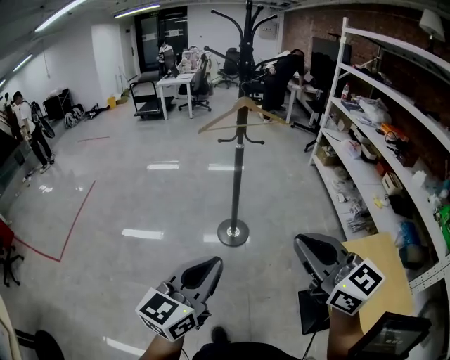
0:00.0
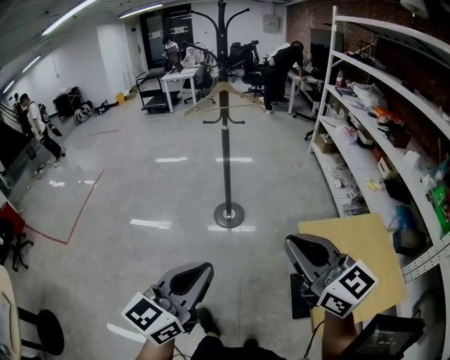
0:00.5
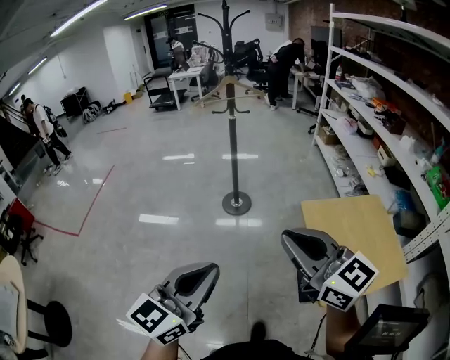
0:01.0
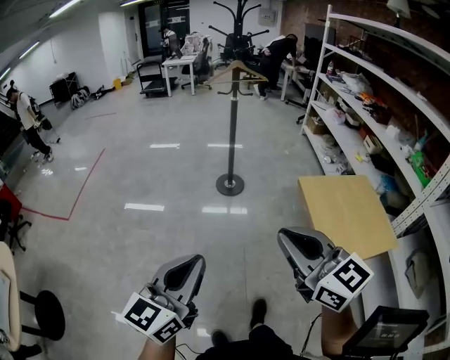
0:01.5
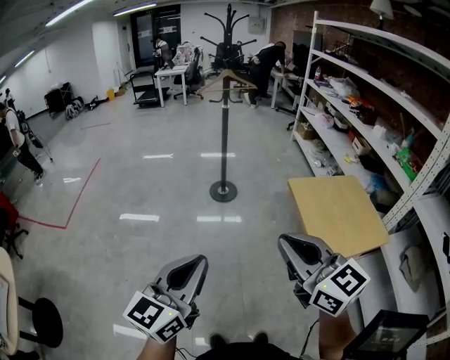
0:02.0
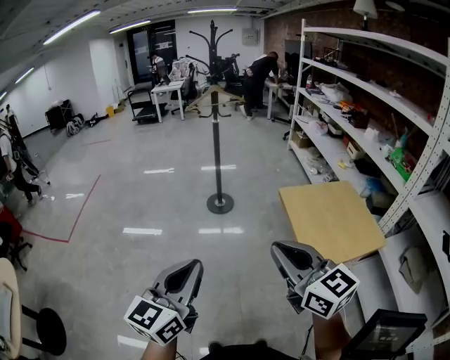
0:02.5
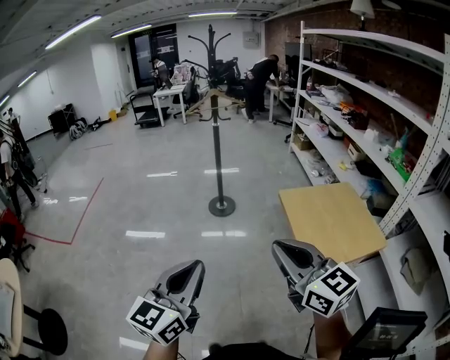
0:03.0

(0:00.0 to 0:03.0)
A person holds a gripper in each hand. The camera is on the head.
0:00.0 - 0:01.5: The two grippers go about 35 cm backward.
0:01.5 - 0:03.0: The left gripper heads to the right, covering roughly 10 cm; the right gripper is displaced to the right and backward by roughly 10 cm.

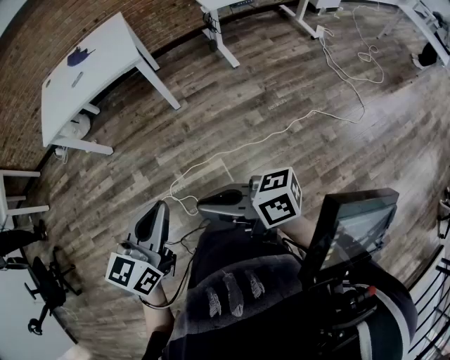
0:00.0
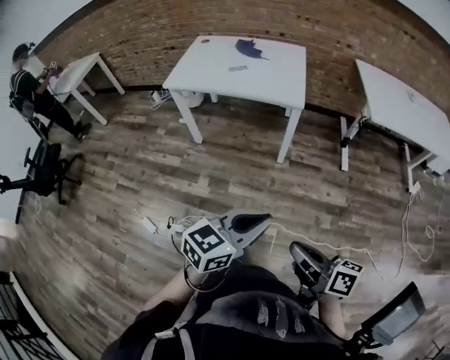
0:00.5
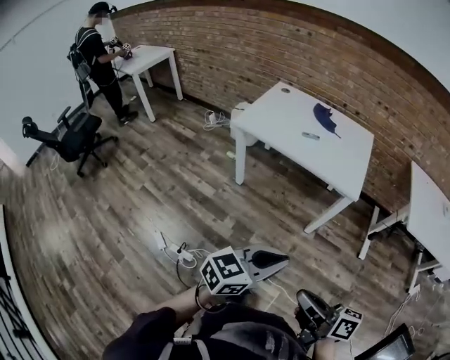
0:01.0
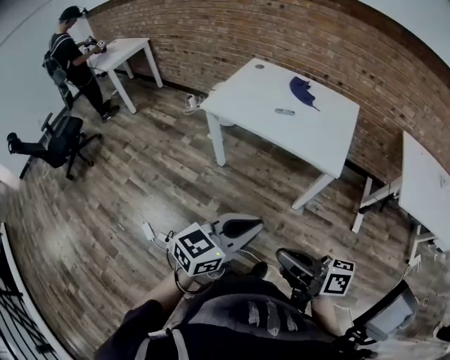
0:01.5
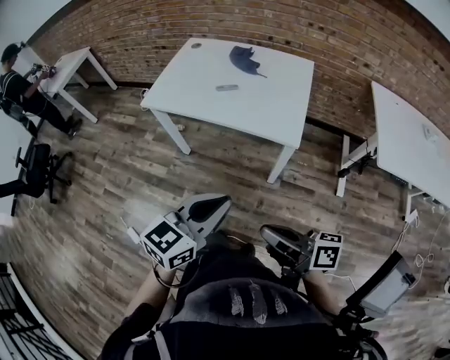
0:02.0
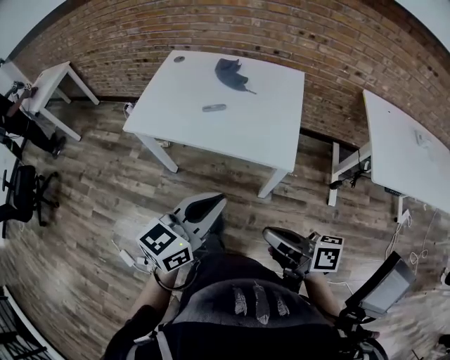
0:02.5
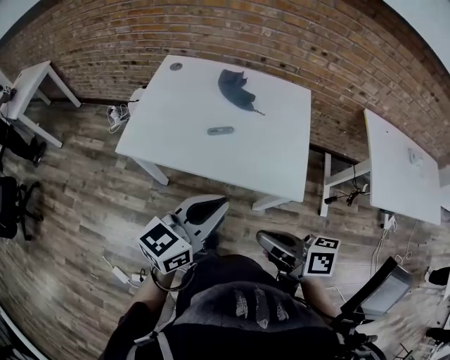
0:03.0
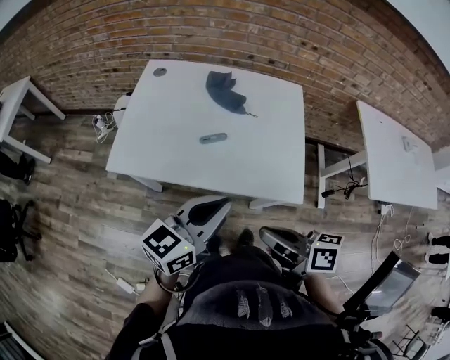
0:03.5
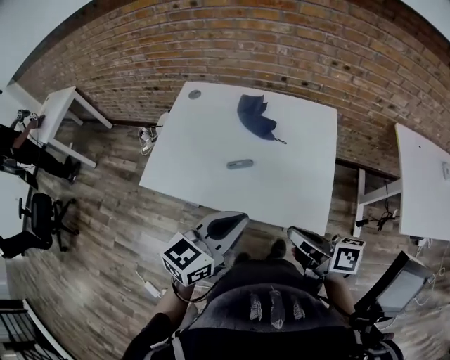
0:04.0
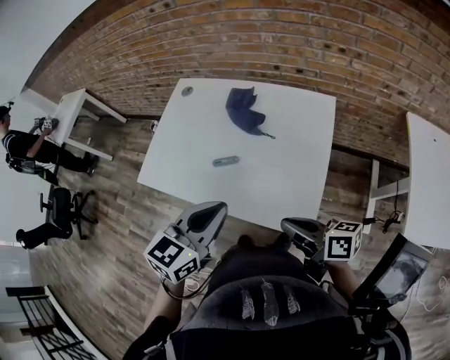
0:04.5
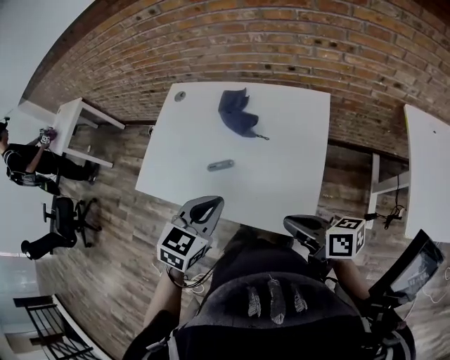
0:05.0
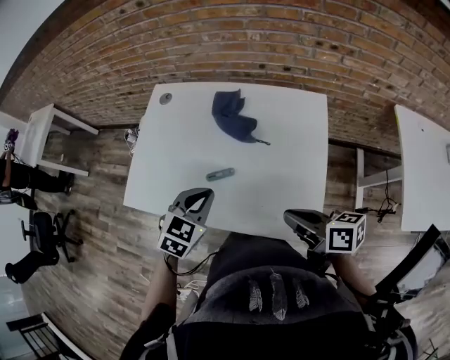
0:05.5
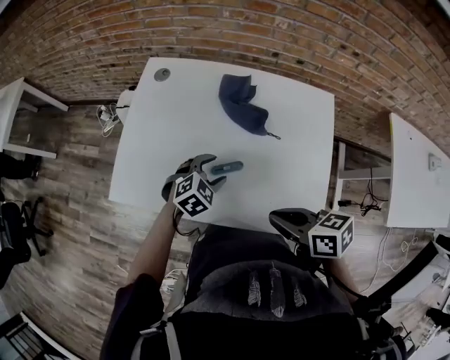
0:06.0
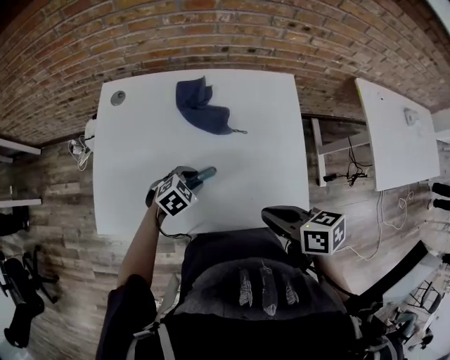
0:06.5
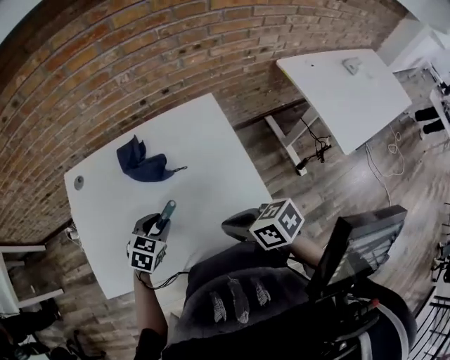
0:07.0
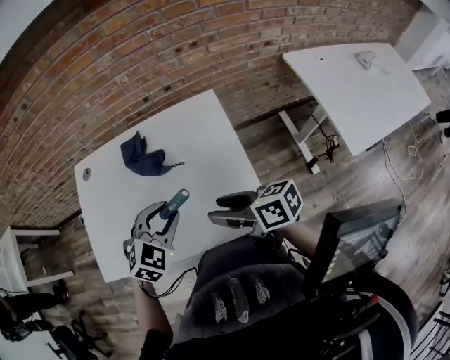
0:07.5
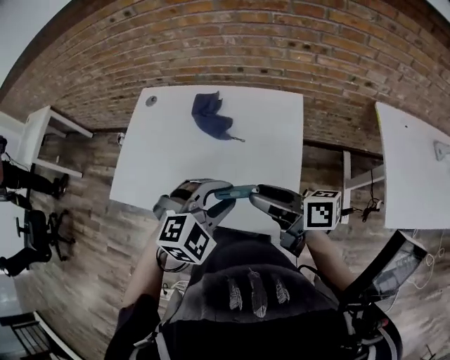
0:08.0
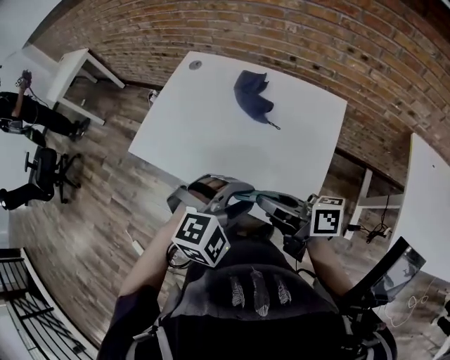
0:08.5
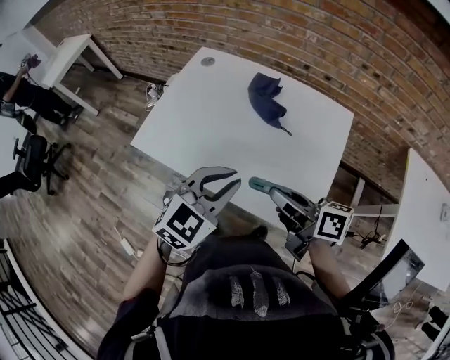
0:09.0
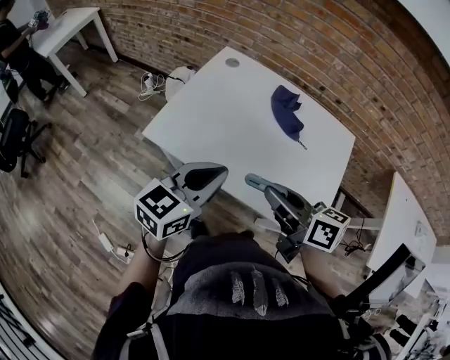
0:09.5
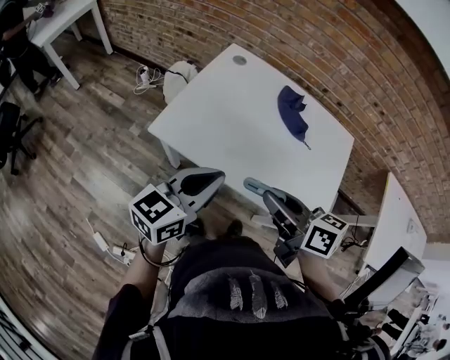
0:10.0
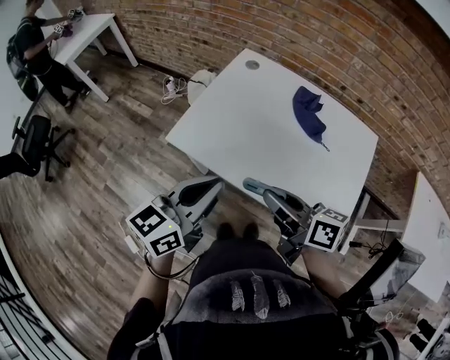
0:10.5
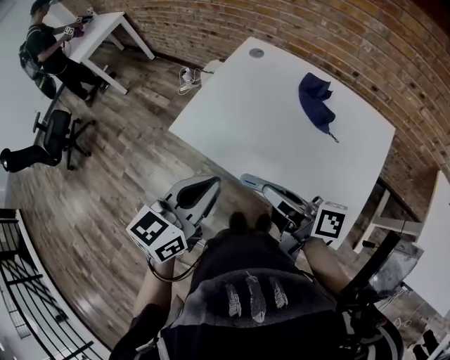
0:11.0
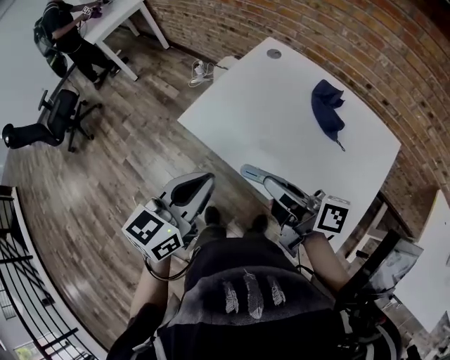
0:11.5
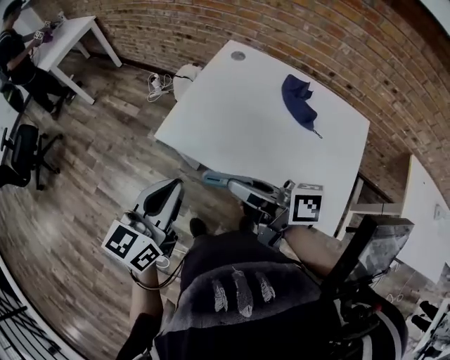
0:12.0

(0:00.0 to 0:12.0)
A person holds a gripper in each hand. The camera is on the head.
0:00.0 - 0:02.0: The two grippers go about 35 cm forward.
0:02.0 - 0:04.0: Both grippers move forward, approximately 30 cm.
0:04.0 - 0:06.0: The right gripper goes approximately 15 cm forward and downward, travels to the right and back again, roughly 10 cm each way, and rotates some 30 degrees; the left gripper heads downward and forward, covering roughly 30 cm, tilts its fingers some 40 degrees downward, and opens its fingers.
0:06.0 - 0:08.0: The left gripper shifts roughly 30 cm to the right, upward and backward, swivels about 30 degrees, and closes; the right gripper is displaced to the right and upward by approximately 15 cm, rotates some 30 degrees, and opens.
0:08.0 - 0:10.0: Both grippers move to the left, some 30 cm. The left gripper rotates around the line of its fingers by approximately 70 degrees, counterclockwise from behind, and closes its fingers, while the right gripper rotates about 20 degrees, and closes up.
0:10.0 - 0:12.0: Both grippers move to the left, some 10 cm. The right gripper rotates some 30 degrees.

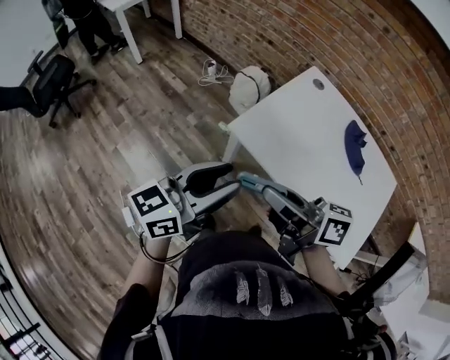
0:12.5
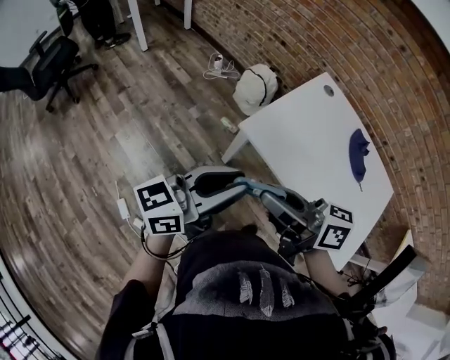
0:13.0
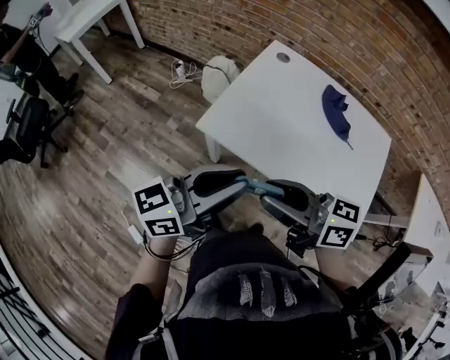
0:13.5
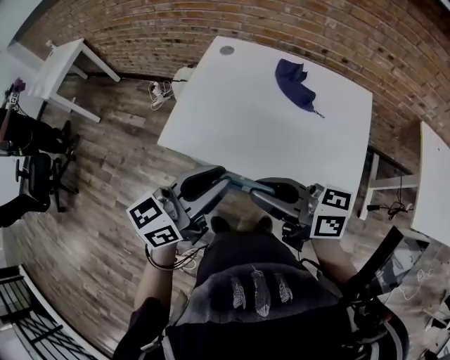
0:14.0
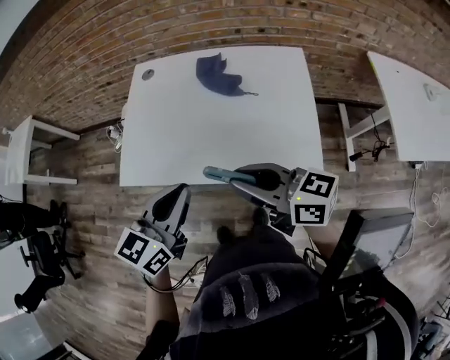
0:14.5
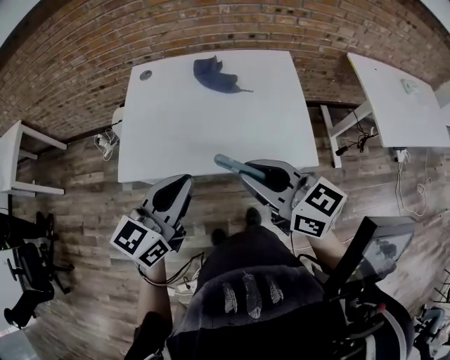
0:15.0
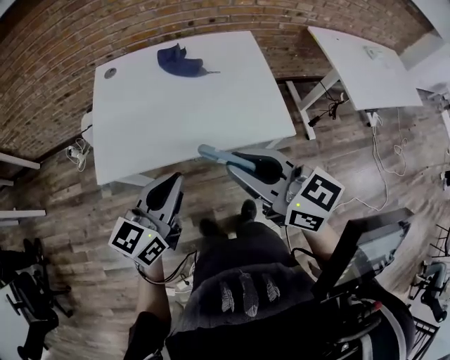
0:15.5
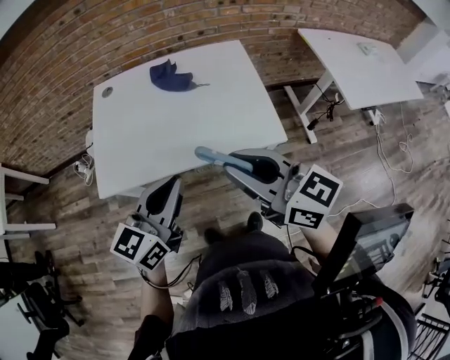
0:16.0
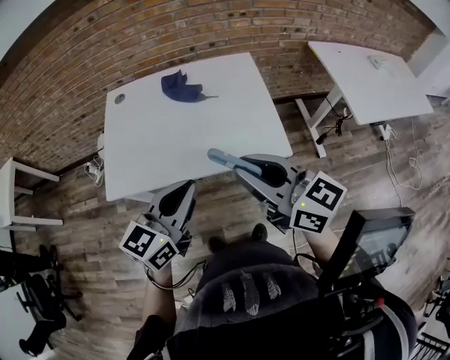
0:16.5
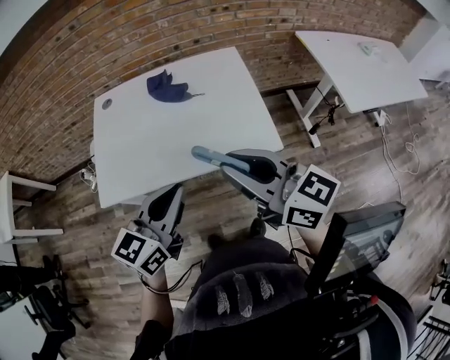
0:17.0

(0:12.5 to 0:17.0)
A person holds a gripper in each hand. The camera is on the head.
0:12.5 - 0:14.5: The two grippers go approximately 25 cm to the right. The right gripper turns by about 40 degrees, while the left gripper swivels roughly 30 degrees, and closes.
0:14.5 - 0:17.0: The left gripper heads backward and to the right, covering approximately 10 cm; the right gripper heads upward, backward and to the right, covering roughly 15 cm, and rotates roughly 30 degrees.

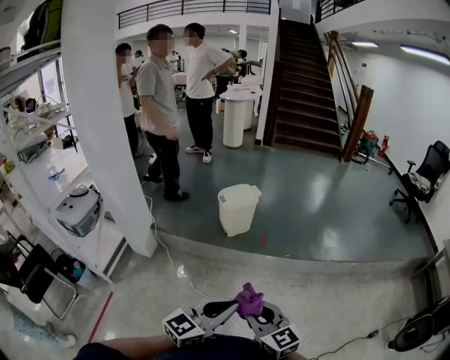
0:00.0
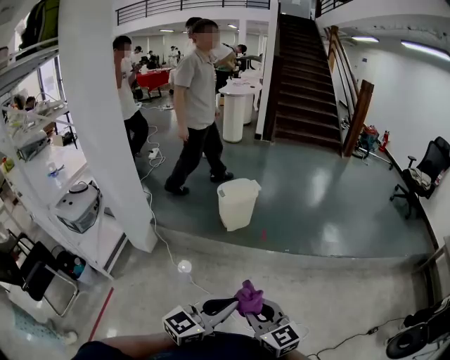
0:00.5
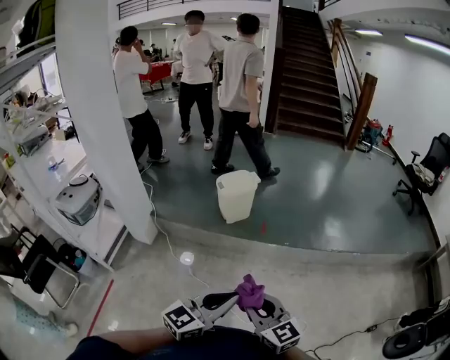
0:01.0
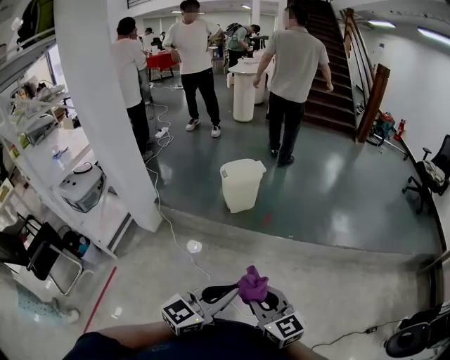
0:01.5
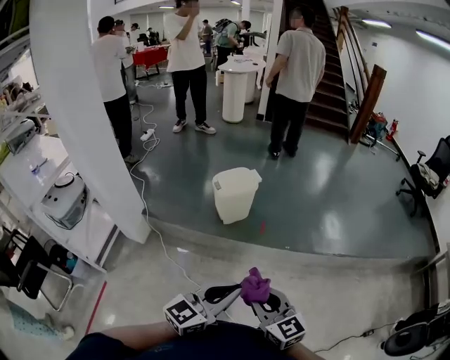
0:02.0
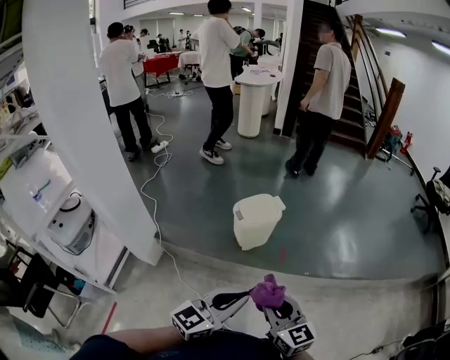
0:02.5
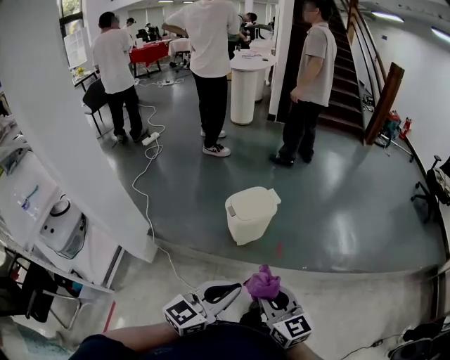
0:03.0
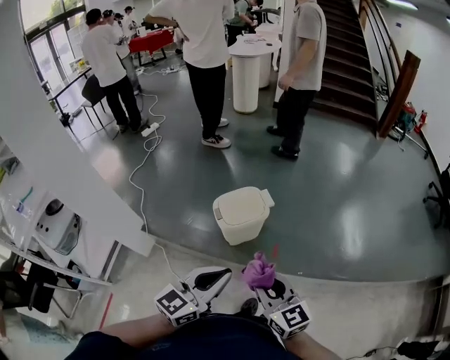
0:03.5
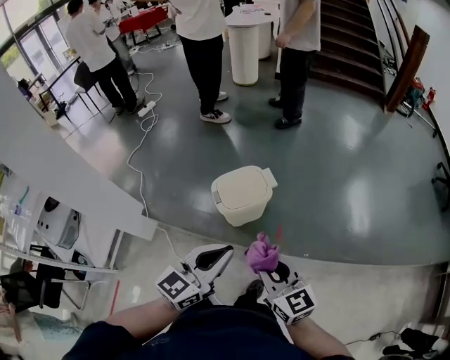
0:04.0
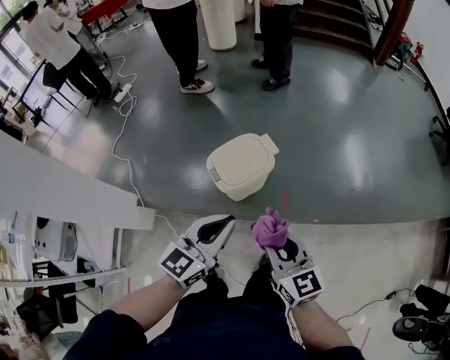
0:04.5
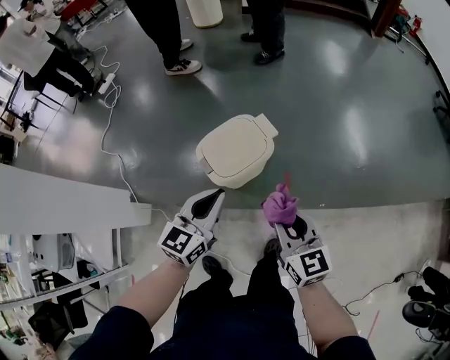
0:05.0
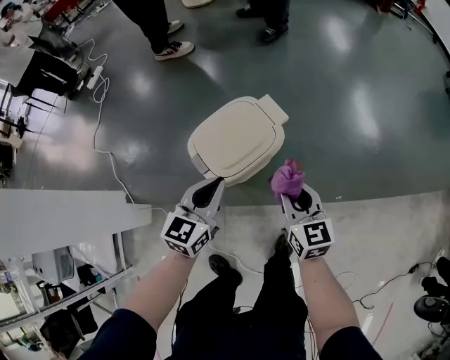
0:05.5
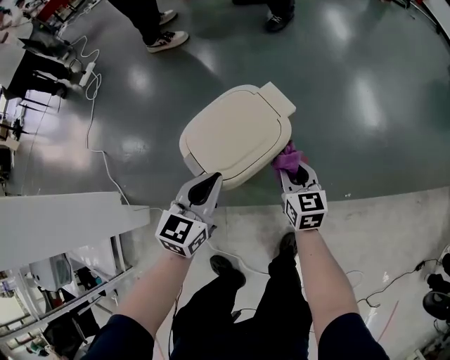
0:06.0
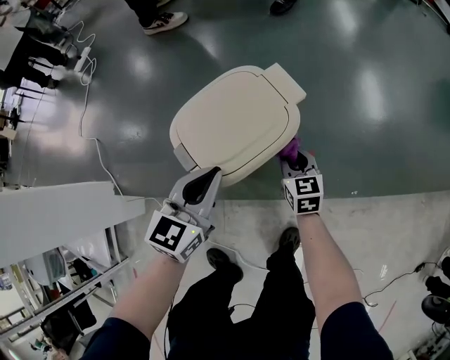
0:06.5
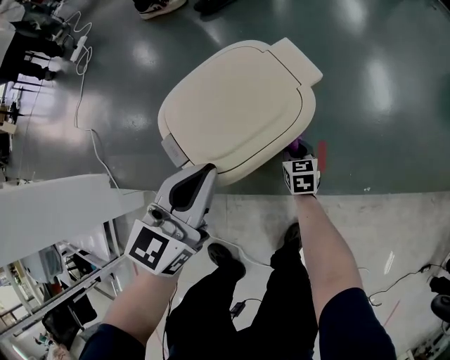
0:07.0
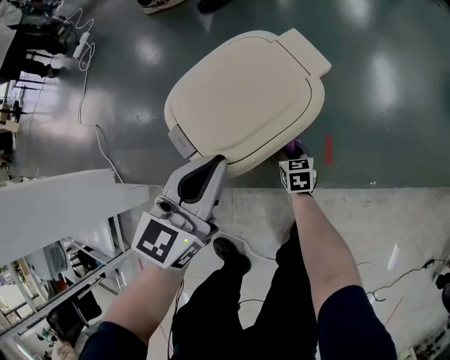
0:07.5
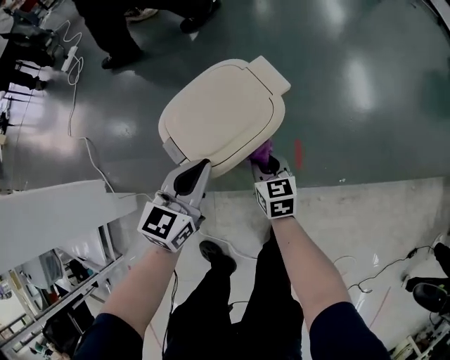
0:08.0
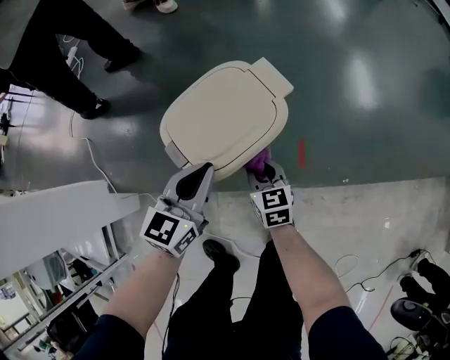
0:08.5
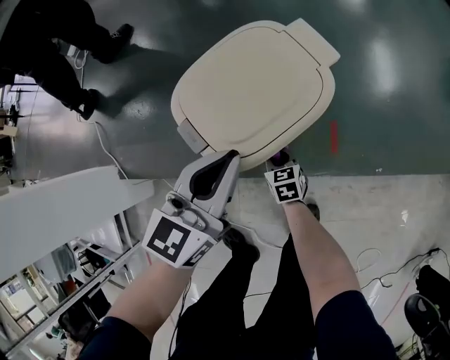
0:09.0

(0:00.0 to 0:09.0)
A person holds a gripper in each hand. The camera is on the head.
0:00.0 - 0:02.0: Both grippers move forward, roughly 15 cm.
0:02.0 - 0:04.5: The pair of grippers is taken forward, approximately 50 cm.
0:04.5 - 0:07.0: The right gripper goes about 70 cm downward and forward, and points its fingers about 30 degrees further downward. Meanwhile the left gripper heads downward and forward, covering approximately 35 cm.
0:07.0 - 0:09.0: The right gripper shifts roughly 15 cm to the left and backward, and moves approximately 15 cm upward and comes back.
